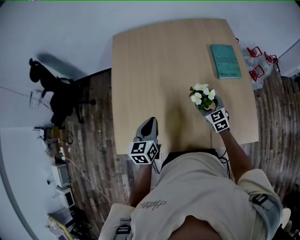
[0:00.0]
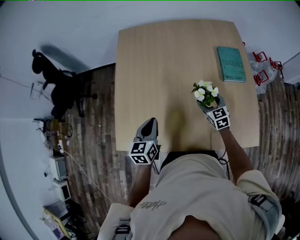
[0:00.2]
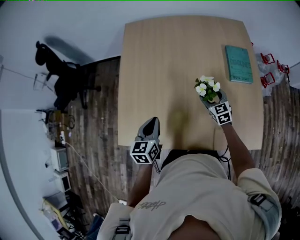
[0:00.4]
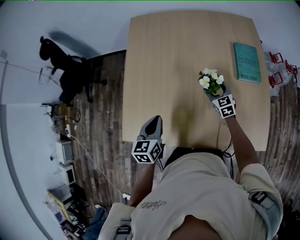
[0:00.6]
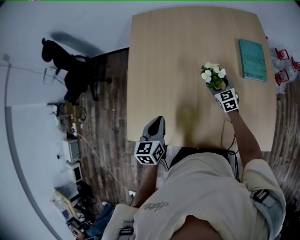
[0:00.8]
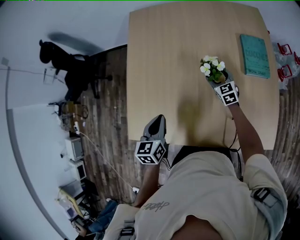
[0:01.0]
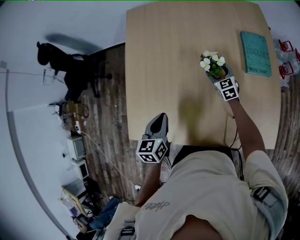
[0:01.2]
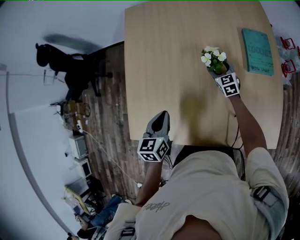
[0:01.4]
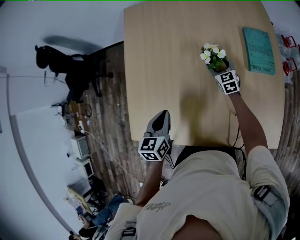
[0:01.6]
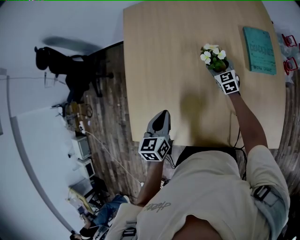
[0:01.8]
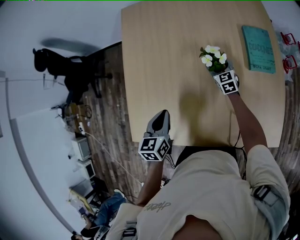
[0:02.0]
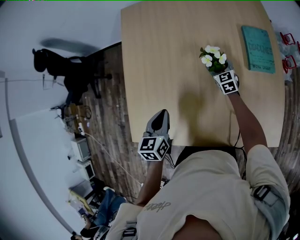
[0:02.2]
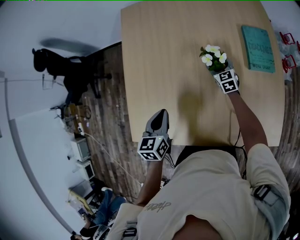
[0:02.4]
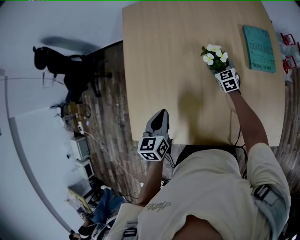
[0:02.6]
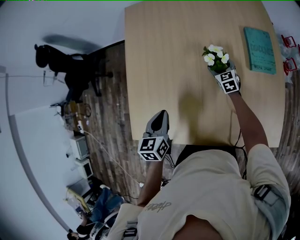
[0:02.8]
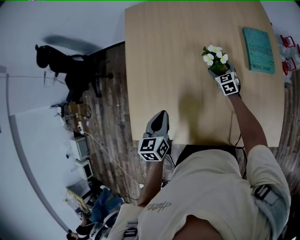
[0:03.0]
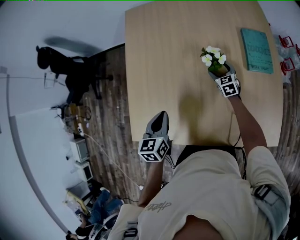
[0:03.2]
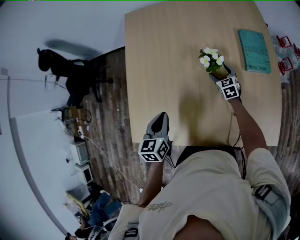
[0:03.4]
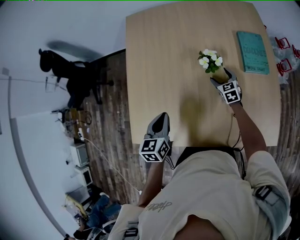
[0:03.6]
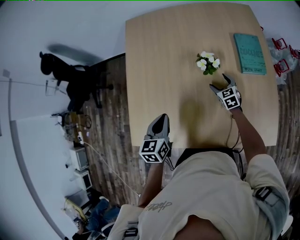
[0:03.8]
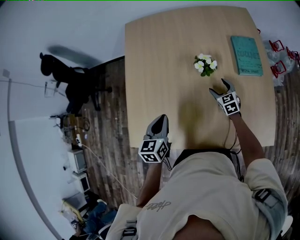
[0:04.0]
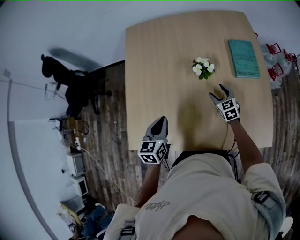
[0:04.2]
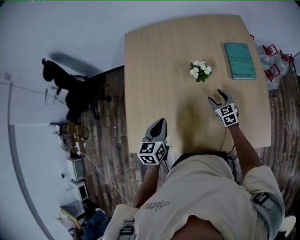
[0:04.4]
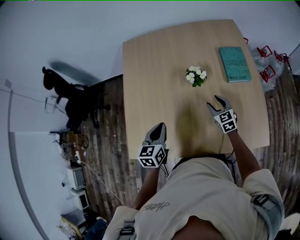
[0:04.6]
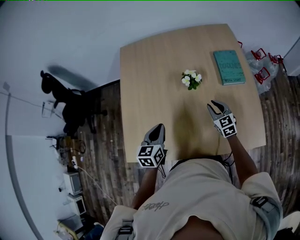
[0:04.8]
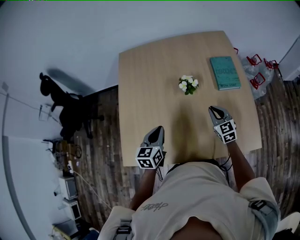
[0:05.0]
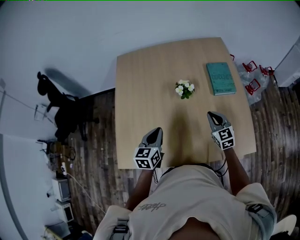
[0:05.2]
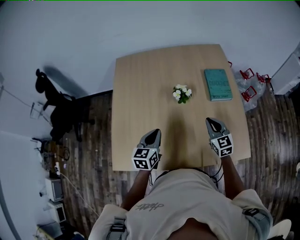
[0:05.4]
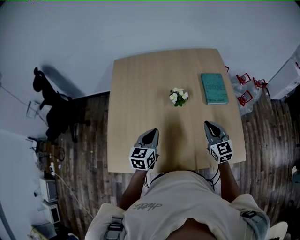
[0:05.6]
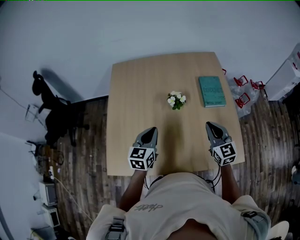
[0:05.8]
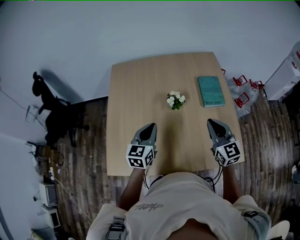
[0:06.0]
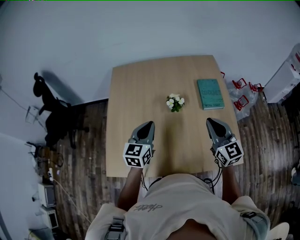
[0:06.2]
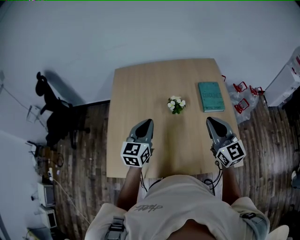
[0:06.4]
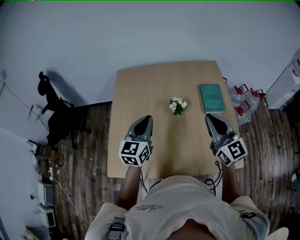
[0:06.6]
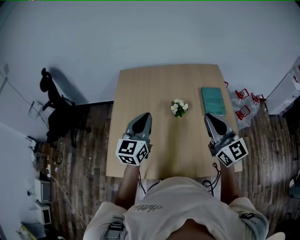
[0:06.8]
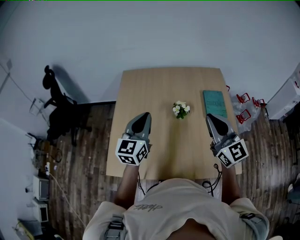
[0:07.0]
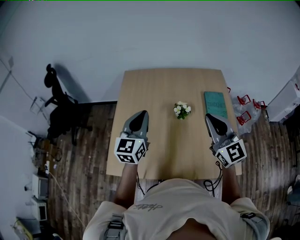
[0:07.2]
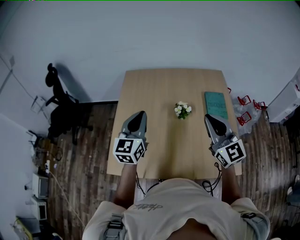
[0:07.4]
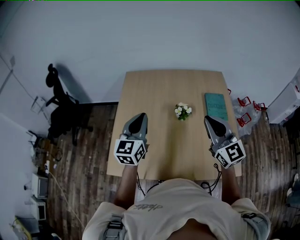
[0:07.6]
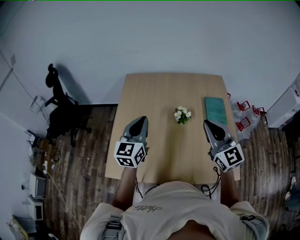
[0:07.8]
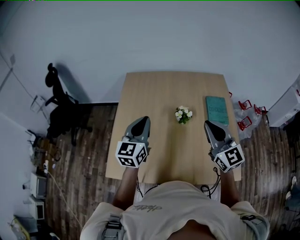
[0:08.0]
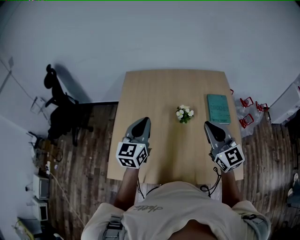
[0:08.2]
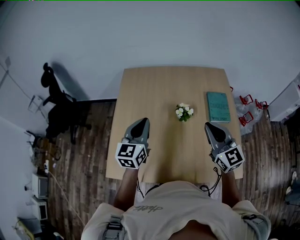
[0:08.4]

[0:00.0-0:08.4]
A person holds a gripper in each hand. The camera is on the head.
0:00.0 to 0:01.4: The right gripper heads forward and downward, covering about 20 cm.
0:01.4 to 0:02.8: The grippers make only small movements.
0:02.8 to 0:04.2: The right gripper travels backward by some 10 cm.
0:04.2 to 0:05.6: The right gripper goes roughly 20 cm upward and backward, rotates roughly 20 degrees, and closes its fingers. Meanwhile the left gripper is displaced to the right by about 5 cm.
0:05.6 to 0:07.0: Both grippers move upward, roughly 20 cm. The right gripper rotates some 20 degrees, while the left gripper turns by some 20 degrees.
0:07.0 to 0:08.4: The left gripper changes place by roughly 5 cm. The right gripper is displaced downward by about 5 cm.

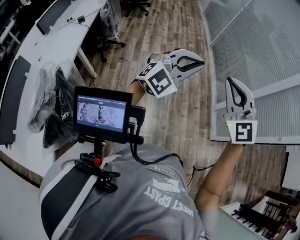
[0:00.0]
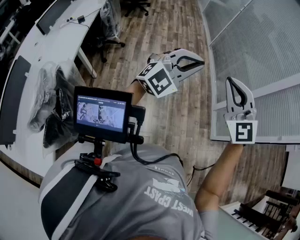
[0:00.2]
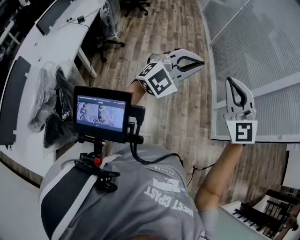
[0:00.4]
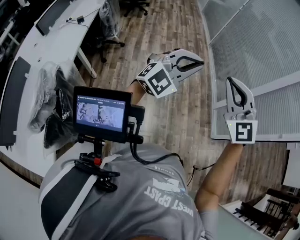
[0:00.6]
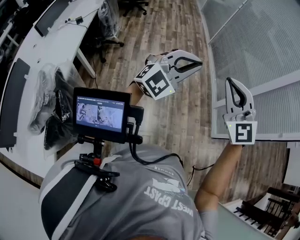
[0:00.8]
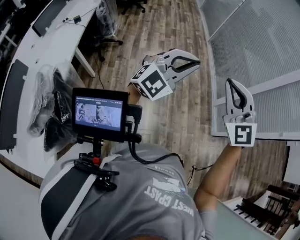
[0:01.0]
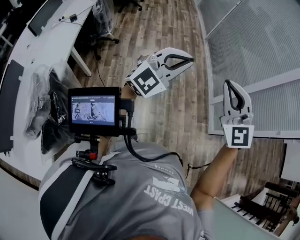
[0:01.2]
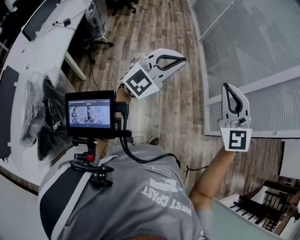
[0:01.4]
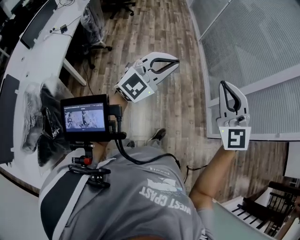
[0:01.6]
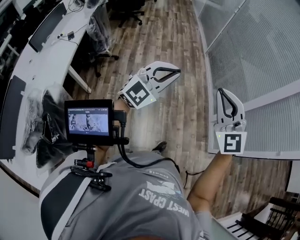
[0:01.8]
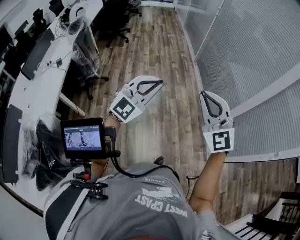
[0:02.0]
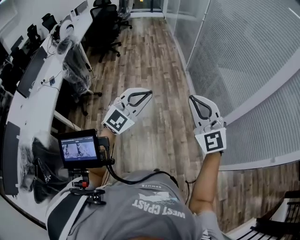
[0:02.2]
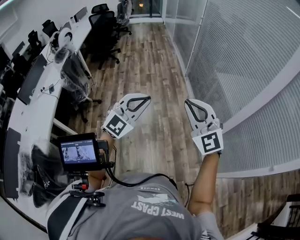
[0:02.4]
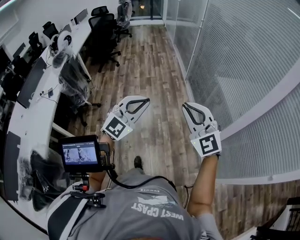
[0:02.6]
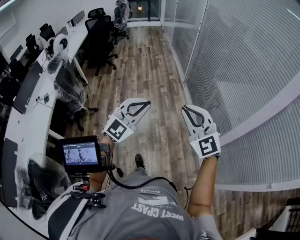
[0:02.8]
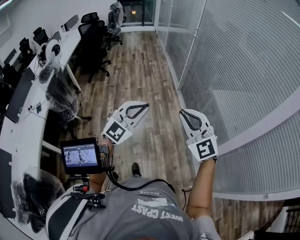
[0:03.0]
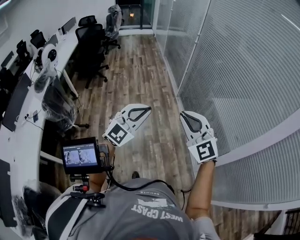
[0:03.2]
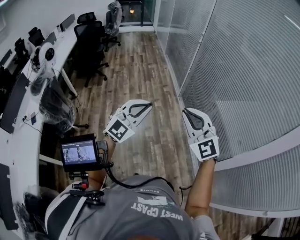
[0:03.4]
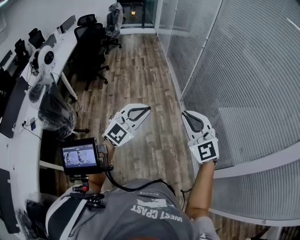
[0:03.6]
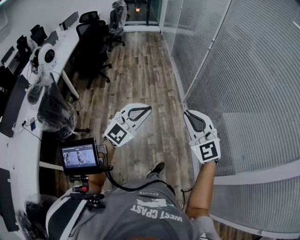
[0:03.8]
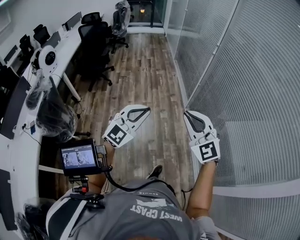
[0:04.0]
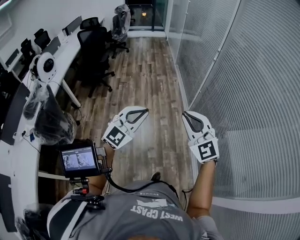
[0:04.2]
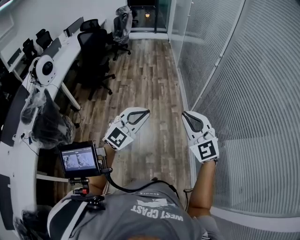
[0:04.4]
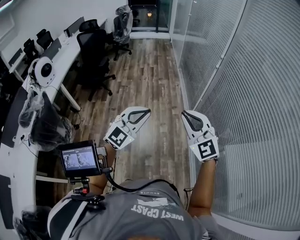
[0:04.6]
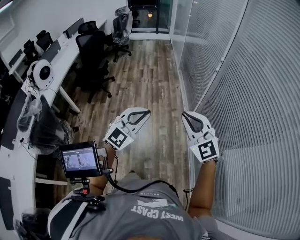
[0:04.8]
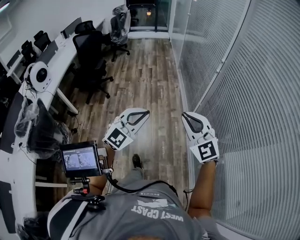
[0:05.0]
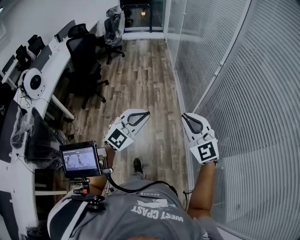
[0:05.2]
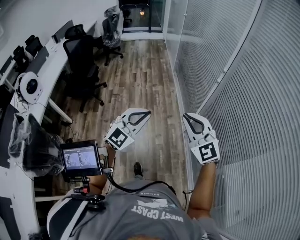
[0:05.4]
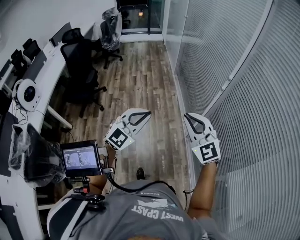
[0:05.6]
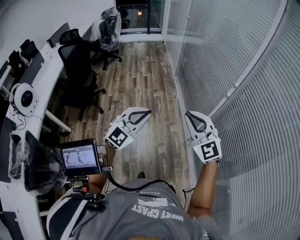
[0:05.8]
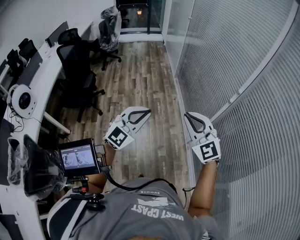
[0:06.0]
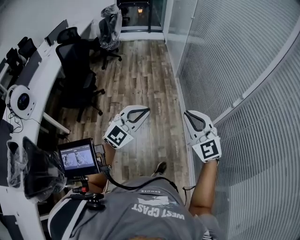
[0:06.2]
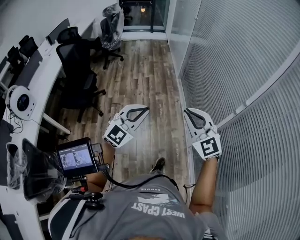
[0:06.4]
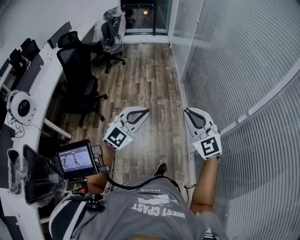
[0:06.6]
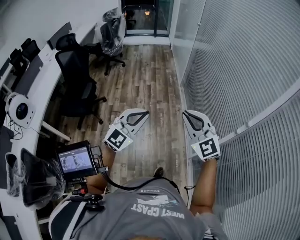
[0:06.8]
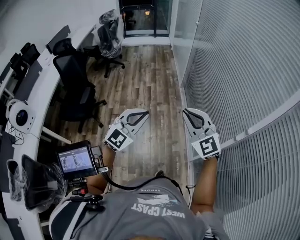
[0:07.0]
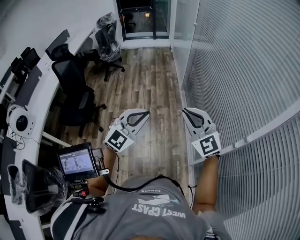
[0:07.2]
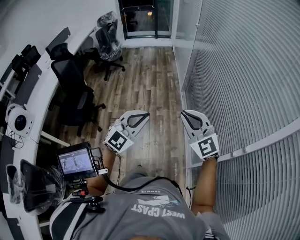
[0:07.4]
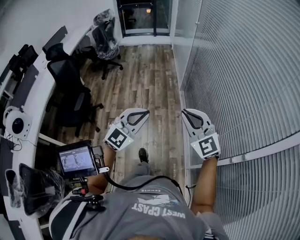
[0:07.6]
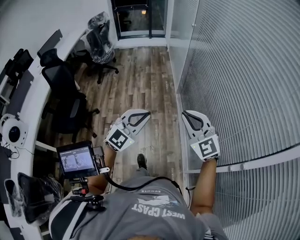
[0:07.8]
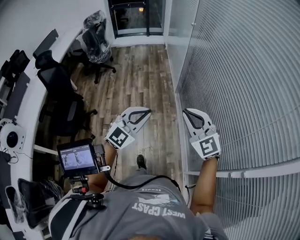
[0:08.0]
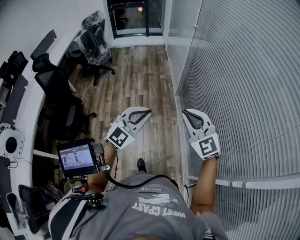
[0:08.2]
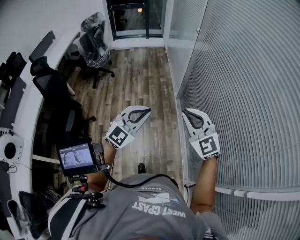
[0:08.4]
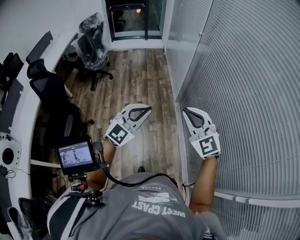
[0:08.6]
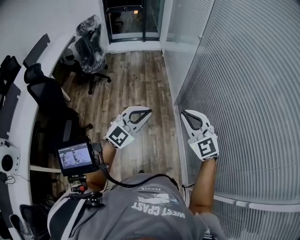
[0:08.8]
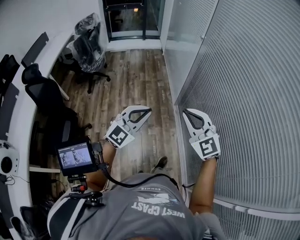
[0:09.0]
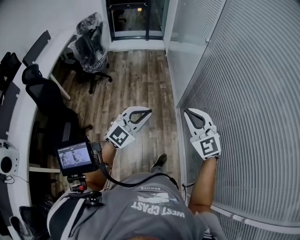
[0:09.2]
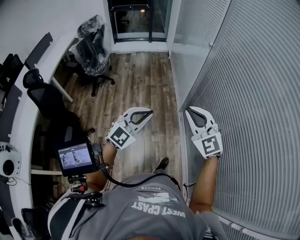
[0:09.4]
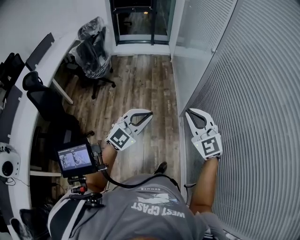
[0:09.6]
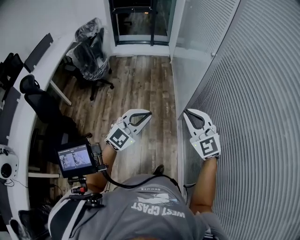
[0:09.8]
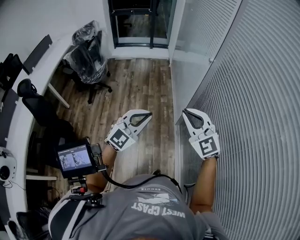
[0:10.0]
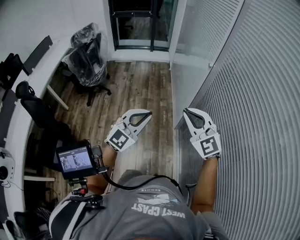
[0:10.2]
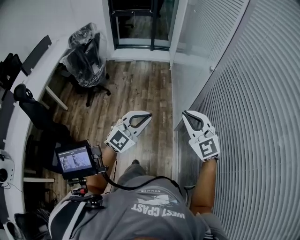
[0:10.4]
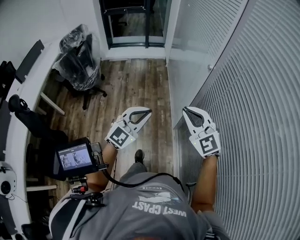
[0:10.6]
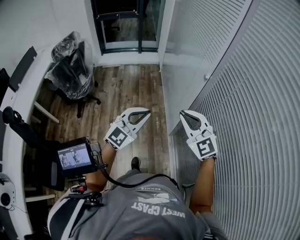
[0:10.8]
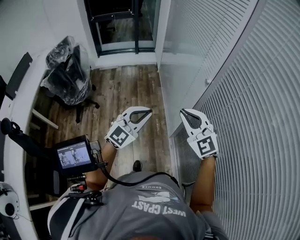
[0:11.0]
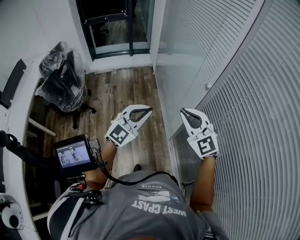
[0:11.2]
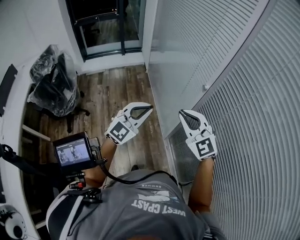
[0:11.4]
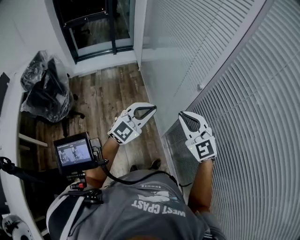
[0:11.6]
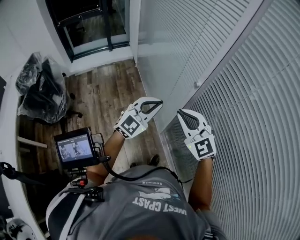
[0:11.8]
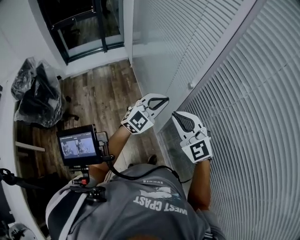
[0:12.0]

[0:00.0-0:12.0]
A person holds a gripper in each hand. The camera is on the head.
0:00.0 to 0:01.6: The two grippers go some 5 cm forward.
0:01.6 to 0:03.0: Both grippers are carried forward, roughly 50 cm.
0:03.0 to 0:04.4: The pair of grippers is taken forward, about 50 cm.
0:04.4 to 0:06.0: The two grippers travel together, forward, about 50 cm.
0:06.0 to 0:07.6: Both grippers are carried forward, some 40 cm.
0:07.6 to 0:09.0: The two grippers go approximately 35 cm forward.
0:09.0 to 0:10.4: Both grippers move forward, roughly 30 cm.
0:10.4 to 0:12.0: Both grippers move forward, about 40 cm. The left gripper changes its angle by about 20 degrees.

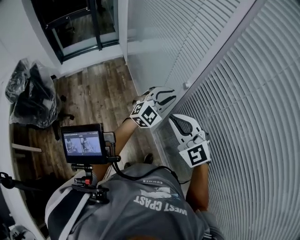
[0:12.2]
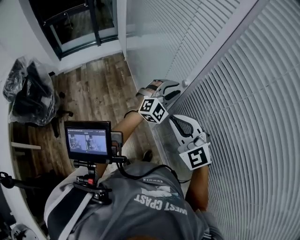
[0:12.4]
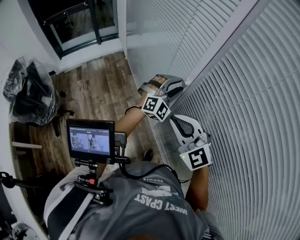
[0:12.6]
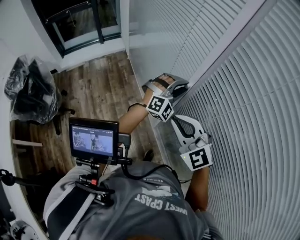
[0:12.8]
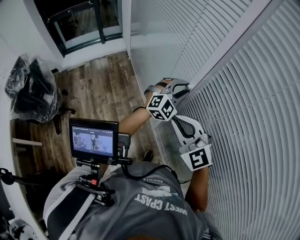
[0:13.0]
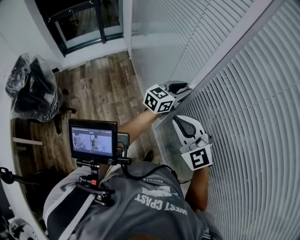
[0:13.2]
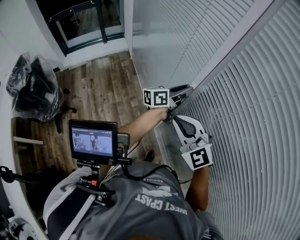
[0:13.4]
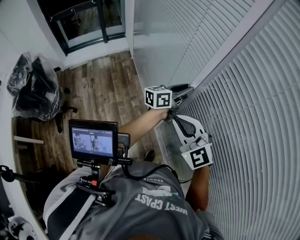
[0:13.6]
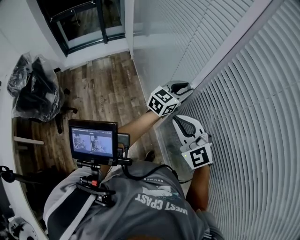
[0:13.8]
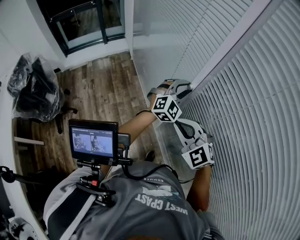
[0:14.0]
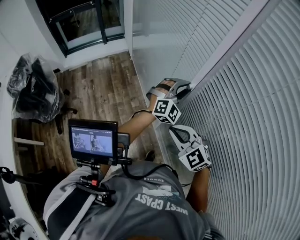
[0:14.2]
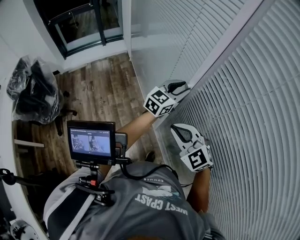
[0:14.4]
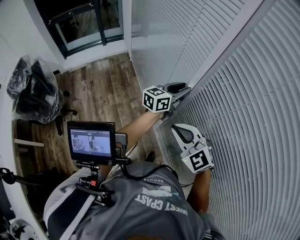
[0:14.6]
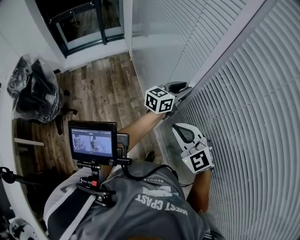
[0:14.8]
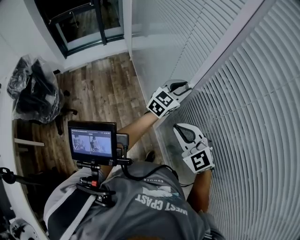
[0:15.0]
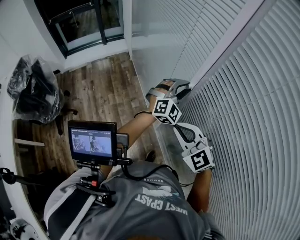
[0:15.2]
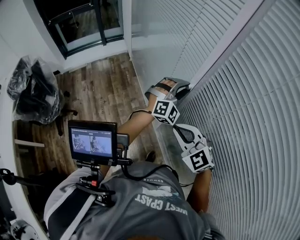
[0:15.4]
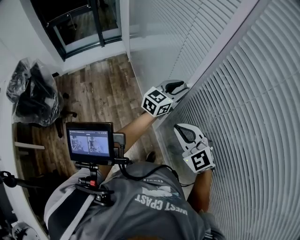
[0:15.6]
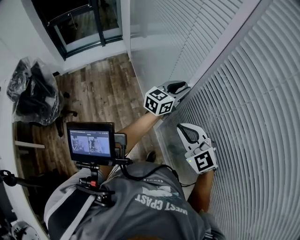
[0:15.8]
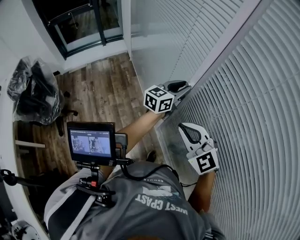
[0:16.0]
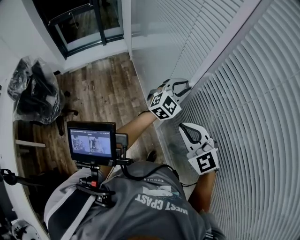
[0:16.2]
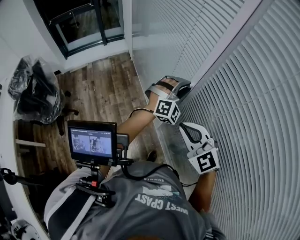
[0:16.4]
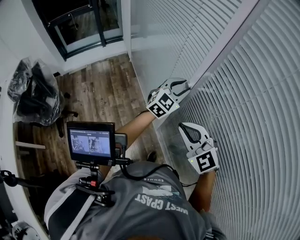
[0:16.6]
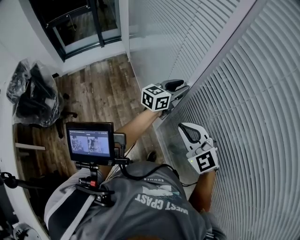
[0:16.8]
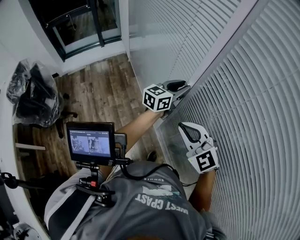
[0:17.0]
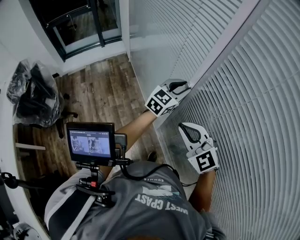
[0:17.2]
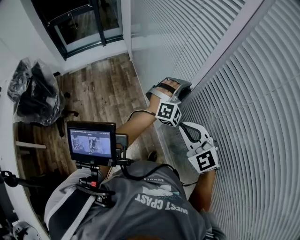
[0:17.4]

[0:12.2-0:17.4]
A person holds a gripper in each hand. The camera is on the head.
0:12.2 to 0:14.0: The right gripper is displaced downward by about 5 cm, while the left gripper heads forward and to the right, covering approximately 10 cm.
0:14.0 to 0:15.6: The left gripper rotates around the line of its fingers by some 50 degrees, counterclockwise from behind.
0:15.6 to 0:17.4: The left gripper rolls clockwise, seen from behind, by about 70 degrees.
